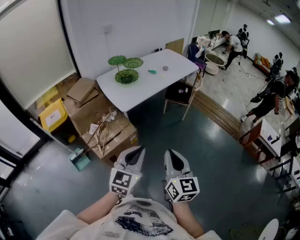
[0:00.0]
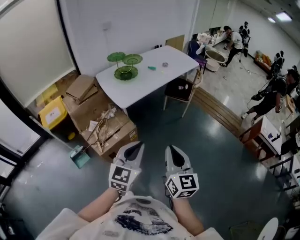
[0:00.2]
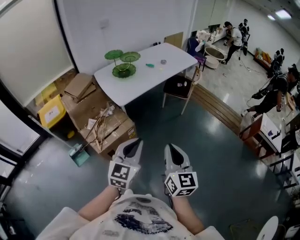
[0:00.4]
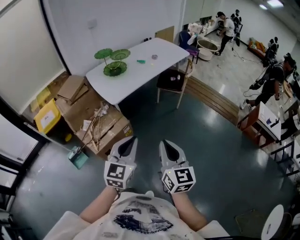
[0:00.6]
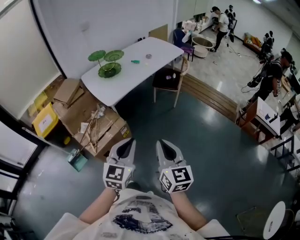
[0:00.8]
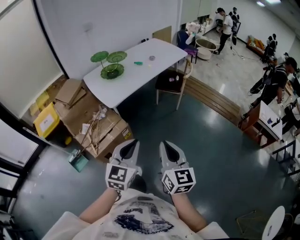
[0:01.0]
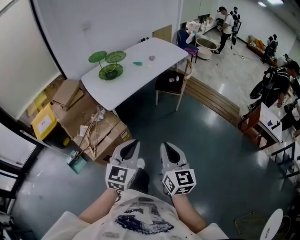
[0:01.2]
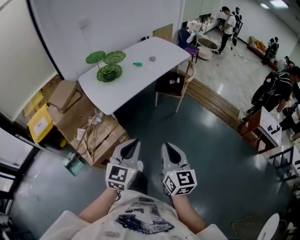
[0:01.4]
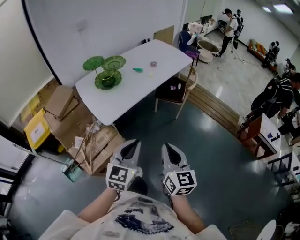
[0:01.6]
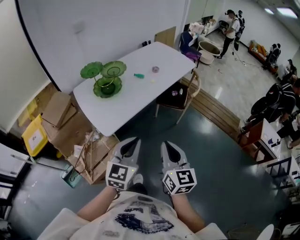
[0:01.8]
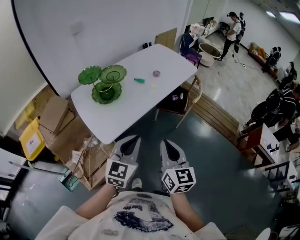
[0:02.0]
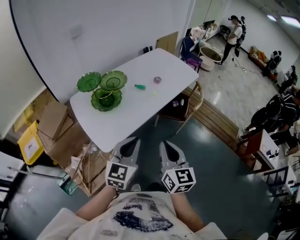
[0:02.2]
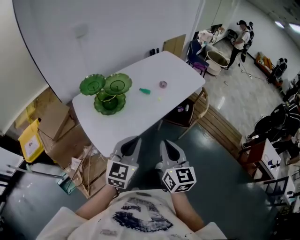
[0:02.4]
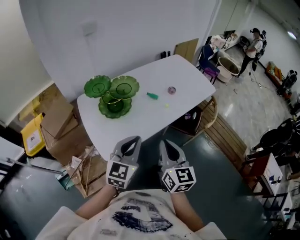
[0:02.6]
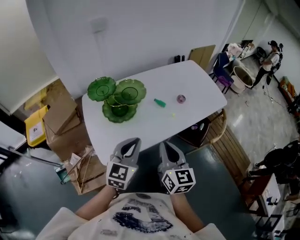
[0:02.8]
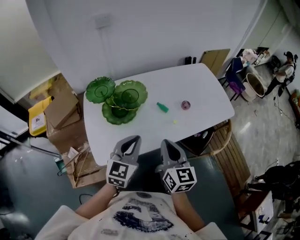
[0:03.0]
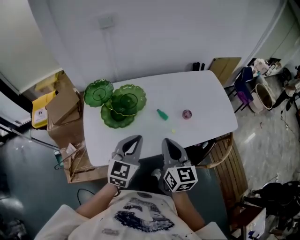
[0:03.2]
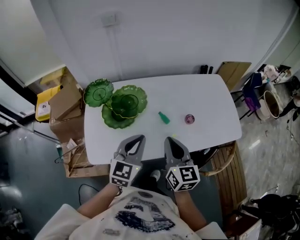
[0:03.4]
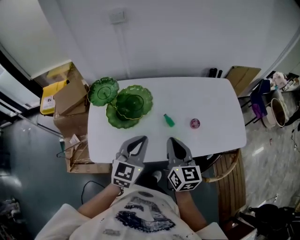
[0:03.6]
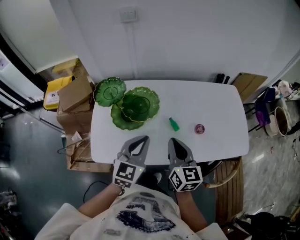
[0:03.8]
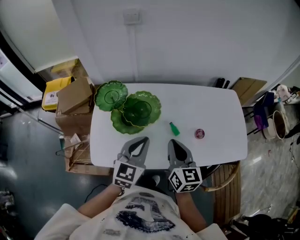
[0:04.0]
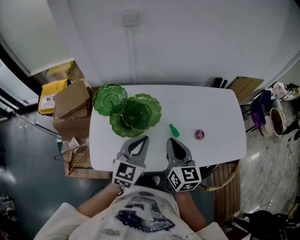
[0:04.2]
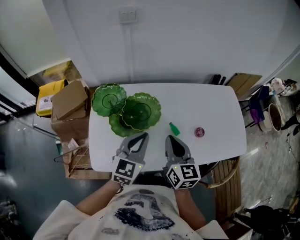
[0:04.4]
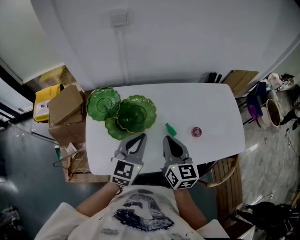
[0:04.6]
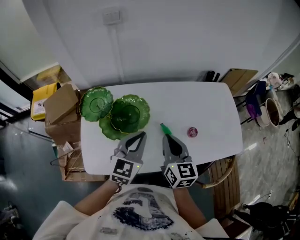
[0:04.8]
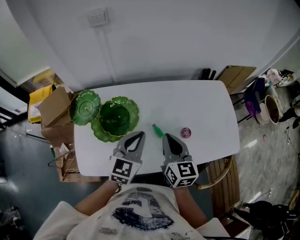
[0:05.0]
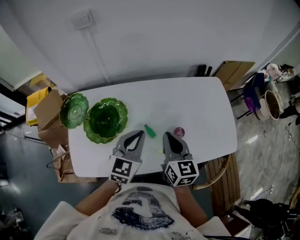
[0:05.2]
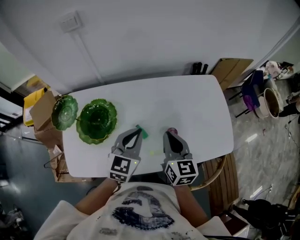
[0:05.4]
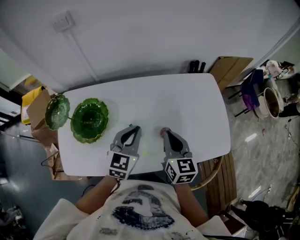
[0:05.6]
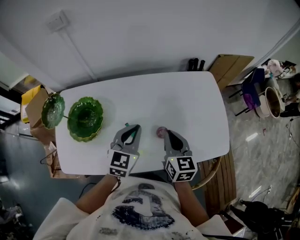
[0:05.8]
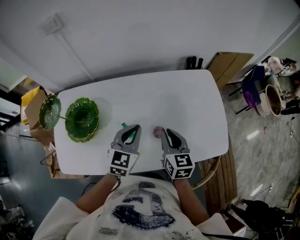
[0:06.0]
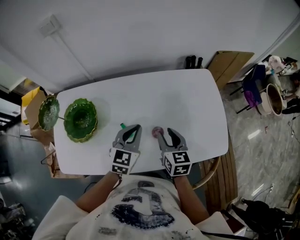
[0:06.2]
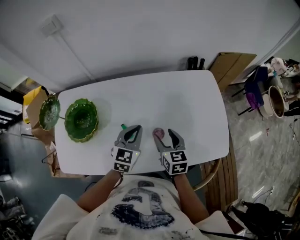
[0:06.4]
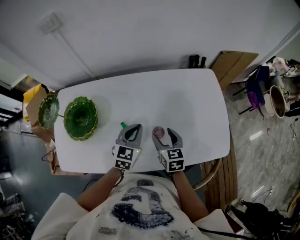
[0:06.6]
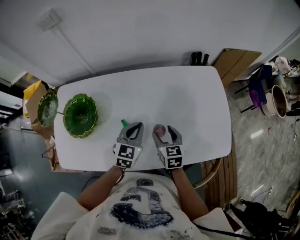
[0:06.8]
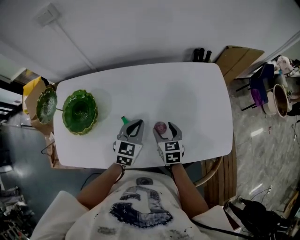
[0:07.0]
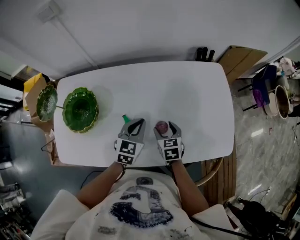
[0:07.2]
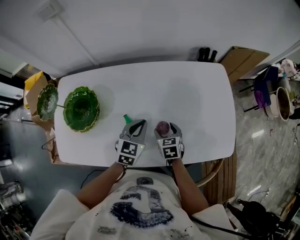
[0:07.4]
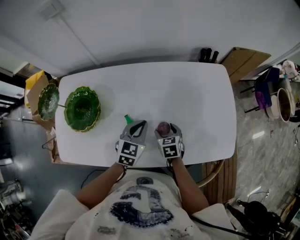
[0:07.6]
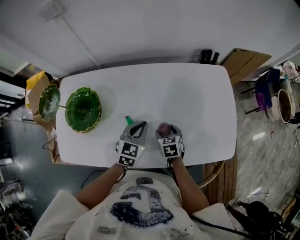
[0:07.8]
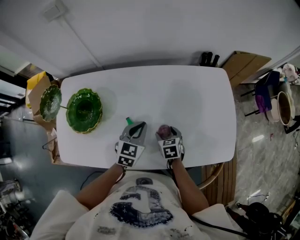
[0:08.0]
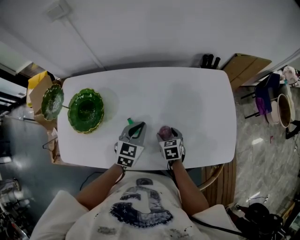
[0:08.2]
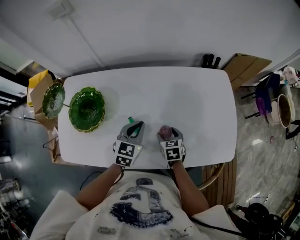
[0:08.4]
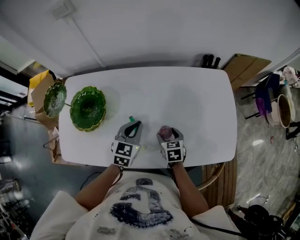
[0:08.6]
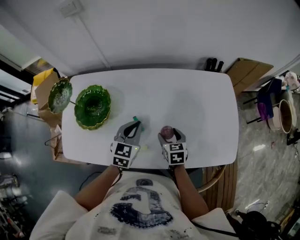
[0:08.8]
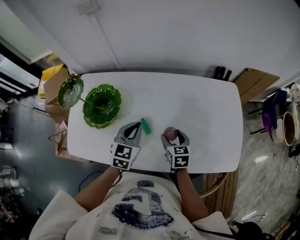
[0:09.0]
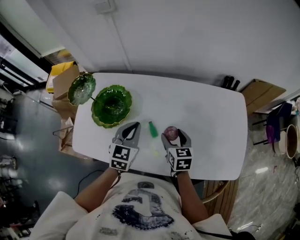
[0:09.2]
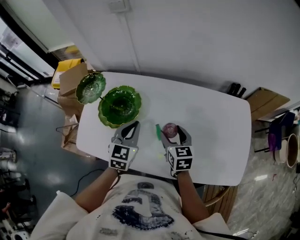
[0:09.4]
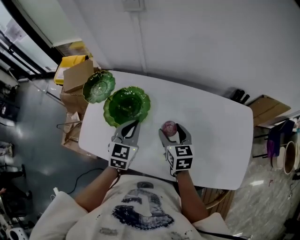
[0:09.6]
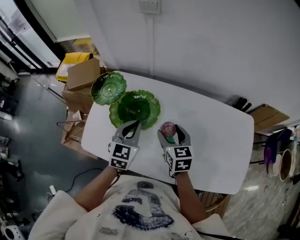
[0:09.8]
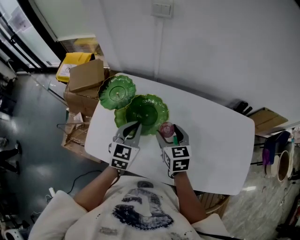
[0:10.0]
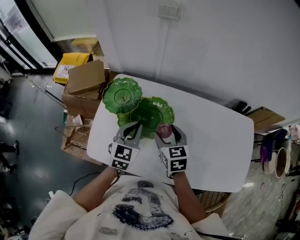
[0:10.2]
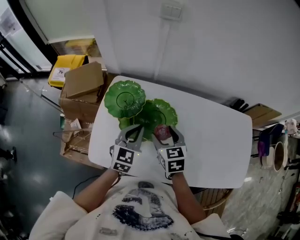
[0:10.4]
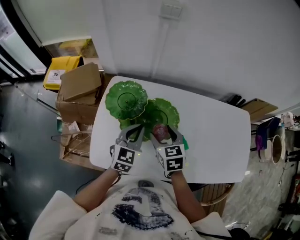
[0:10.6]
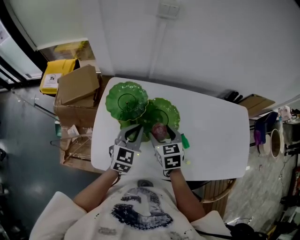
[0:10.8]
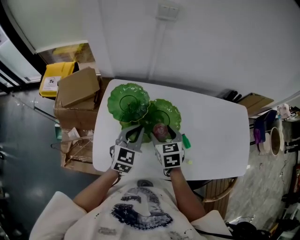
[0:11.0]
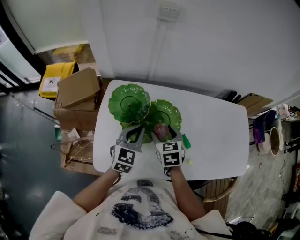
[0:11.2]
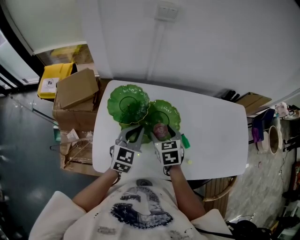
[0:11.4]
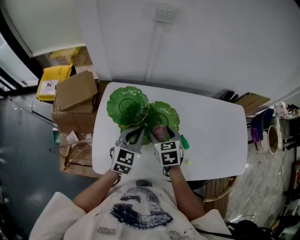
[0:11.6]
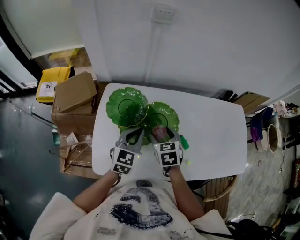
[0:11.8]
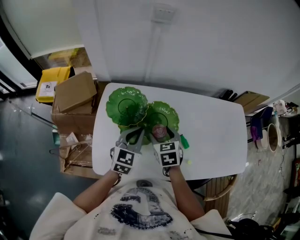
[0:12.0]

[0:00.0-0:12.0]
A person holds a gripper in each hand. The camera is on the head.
0:00.0 to 0:01.6: The grippers both shift forward by approximately 25 cm.
0:01.6 to 0:03.0: The two grippers travel together, approximately 50 cm. The left gripper swivels about 20 degrees. Meanwhile the right gripper changes its angle by some 30 degrees.
0:03.0 to 0:04.4: Both grippers move forward, roughly 15 cm.
0:04.4 to 0:06.0: Both grippers move to the right and forward, about 30 cm.
0:06.0 to 0:07.6: The right gripper shifts approximately 20 cm downward, turns by some 30 degrees, and opens its fingers, while the left gripper is displaced downward by roughly 10 cm.
0:07.6 to 0:09.0: The right gripper goes some 5 cm upward. Meanwhile the left gripper shifts about 10 cm to the left and upward.
0:09.0 to 0:10.4: The right gripper goes approximately 30 cm to the left and upward; the left gripper travels to the left by roughly 25 cm.
0:10.4 to 0:12.0: There are only small adjustments of the grippers.

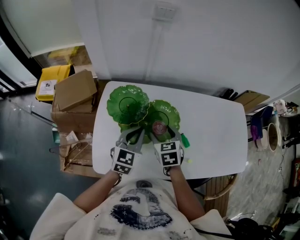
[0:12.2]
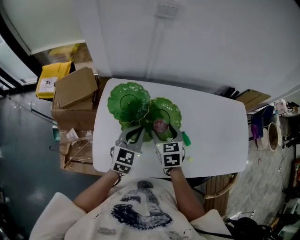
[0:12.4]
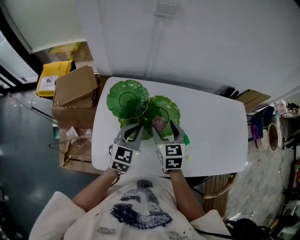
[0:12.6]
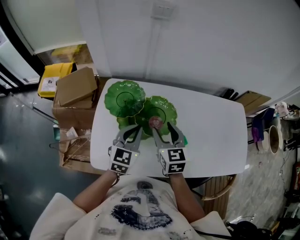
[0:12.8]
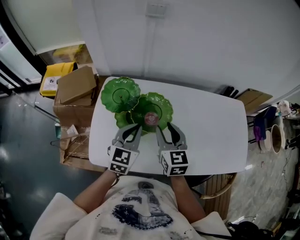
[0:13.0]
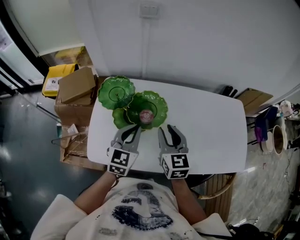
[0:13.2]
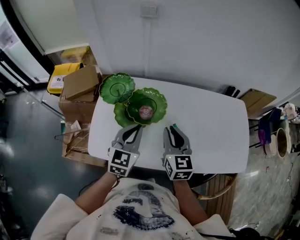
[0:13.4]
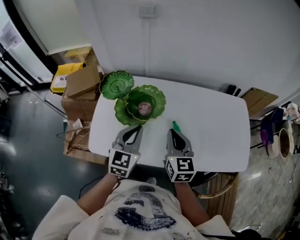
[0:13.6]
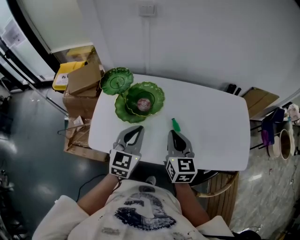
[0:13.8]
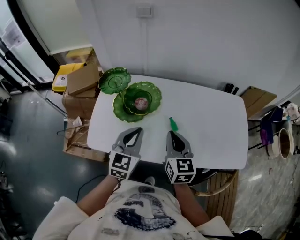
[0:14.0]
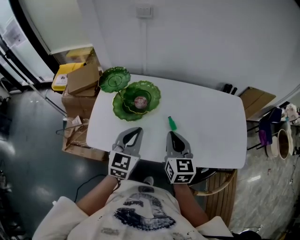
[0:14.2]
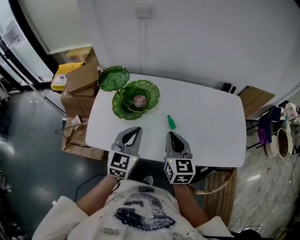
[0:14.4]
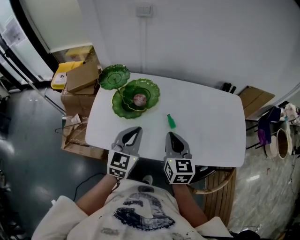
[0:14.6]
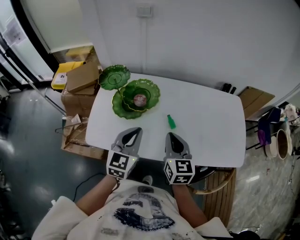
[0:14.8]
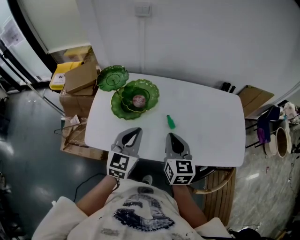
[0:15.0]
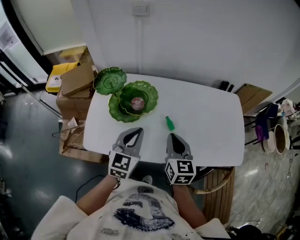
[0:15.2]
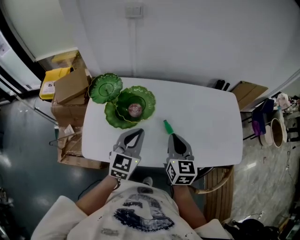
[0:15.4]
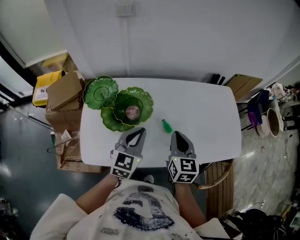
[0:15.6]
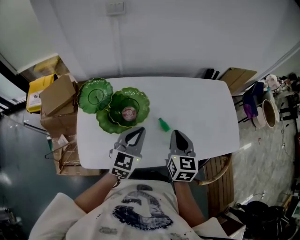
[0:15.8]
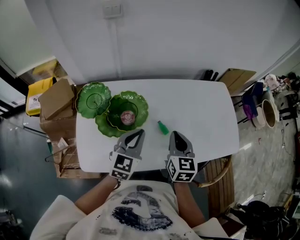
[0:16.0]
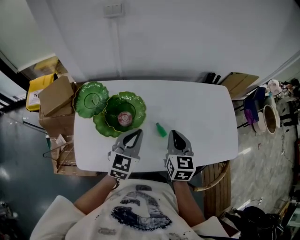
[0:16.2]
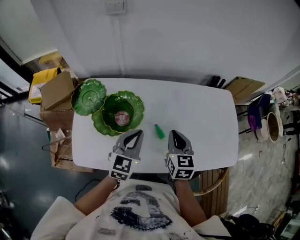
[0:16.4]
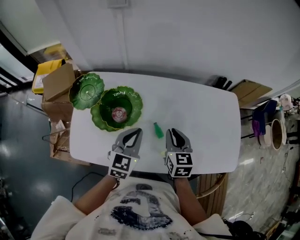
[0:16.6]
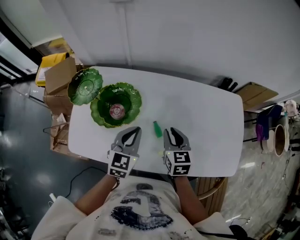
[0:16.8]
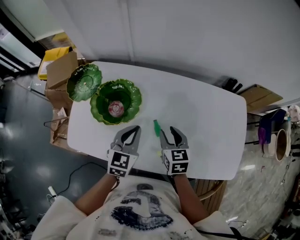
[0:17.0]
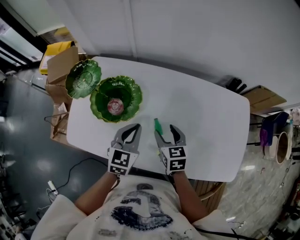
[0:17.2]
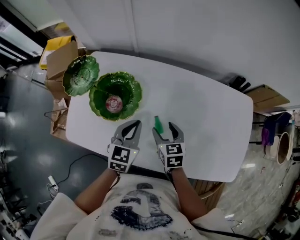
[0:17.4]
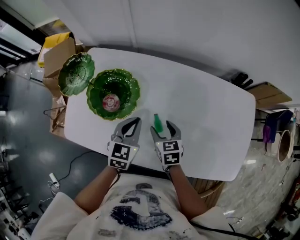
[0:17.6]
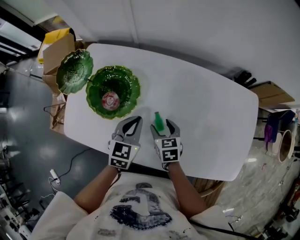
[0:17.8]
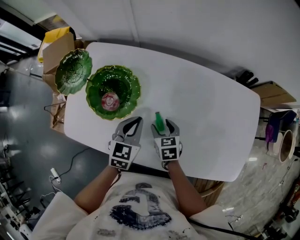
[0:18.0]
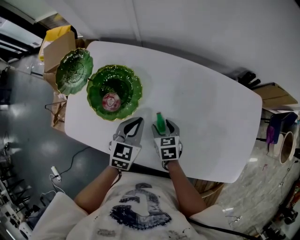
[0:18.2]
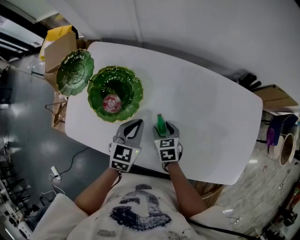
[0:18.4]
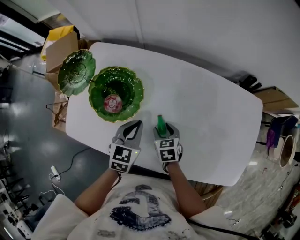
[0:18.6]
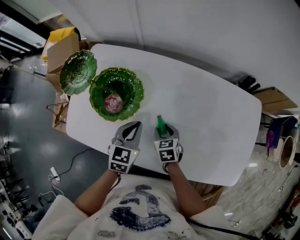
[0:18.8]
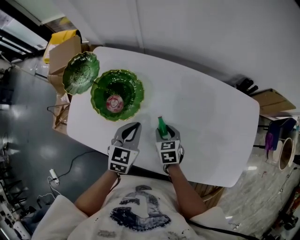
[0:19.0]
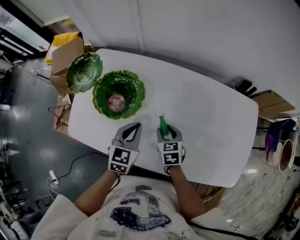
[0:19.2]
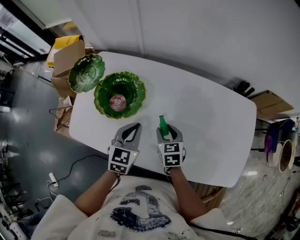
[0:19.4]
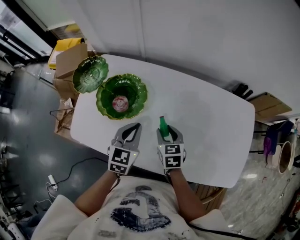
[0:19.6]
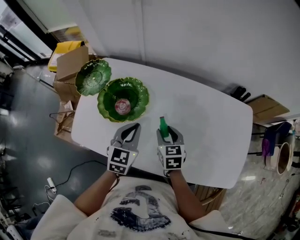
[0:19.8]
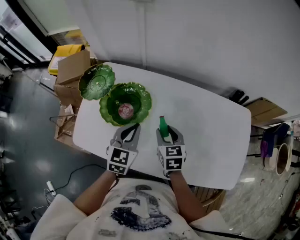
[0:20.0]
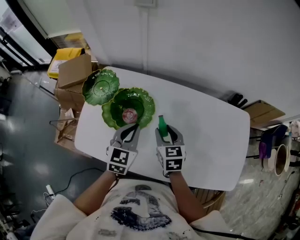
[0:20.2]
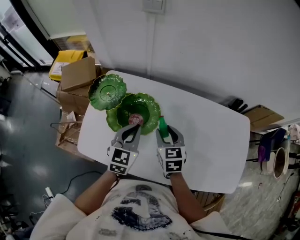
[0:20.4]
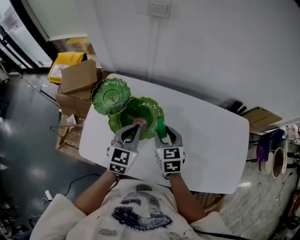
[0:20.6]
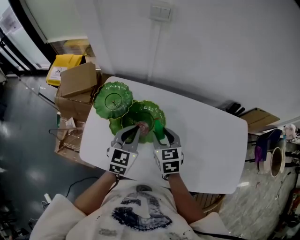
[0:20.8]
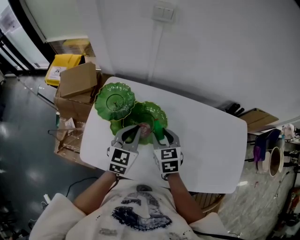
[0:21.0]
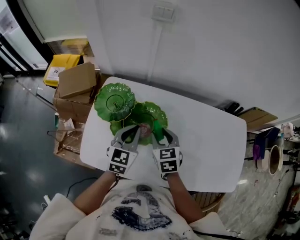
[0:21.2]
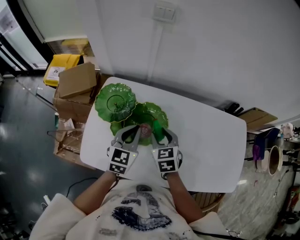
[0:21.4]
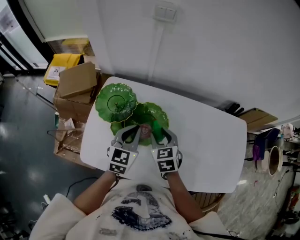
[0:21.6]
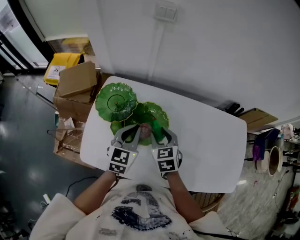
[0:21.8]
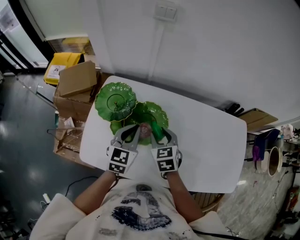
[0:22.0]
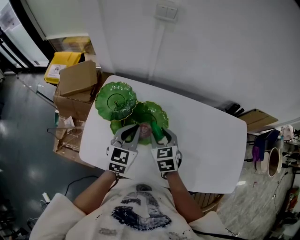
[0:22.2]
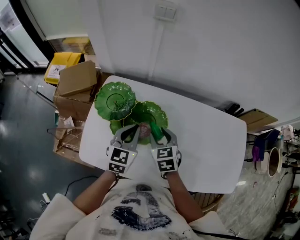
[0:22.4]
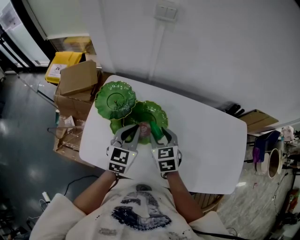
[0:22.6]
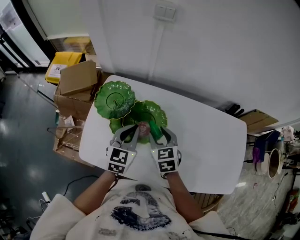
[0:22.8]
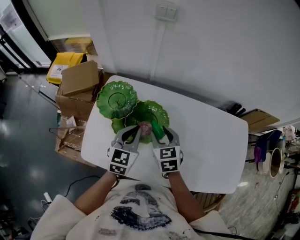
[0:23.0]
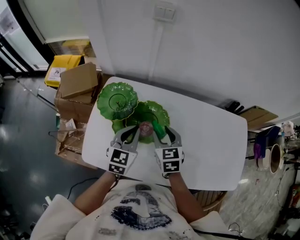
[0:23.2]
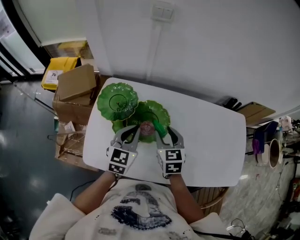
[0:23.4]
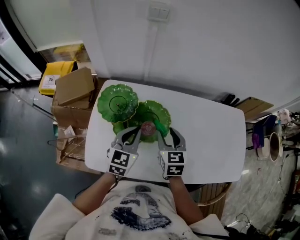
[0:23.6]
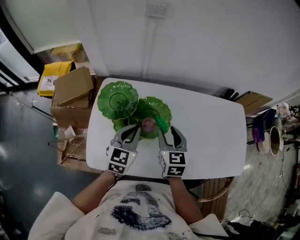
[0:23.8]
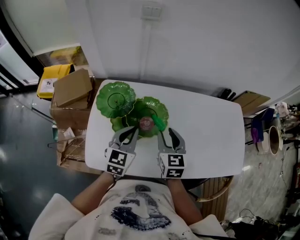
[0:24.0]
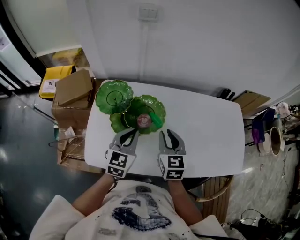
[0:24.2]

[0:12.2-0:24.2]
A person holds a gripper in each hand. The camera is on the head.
0:12.2 to 0:13.8: The left gripper travels backward, to the right and upward by some 20 cm, while the right gripper travels to the right, backward and upward by approximately 20 cm, rotates roughly 30 degrees, and closes its fingers.
0:13.8 to 0:15.2: There are only small adjustments of the grippers.
0:15.2 to 0:16.6: The grippers both shift forward and downward by approximately 15 cm.
0:16.6 to 0:18.2: The left gripper is displaced downward by approximately 10 cm, while the right gripper is displaced downward by about 20 cm, turns by roughly 30 degrees, and opens up.
0:18.2 to 0:19.8: The right gripper travels upward by roughly 10 cm. Meanwhile the left gripper is displaced upward by about 5 cm.
0:19.8 to 0:21.2: The left gripper is displaced to the left and forward by approximately 15 cm. The right gripper heads to the left, upward and forward, covering roughly 15 cm.
0:21.2 to 0:22.6: The grippers make only small movements.
0:22.6 to 0:24.2: The right gripper shifts about 10 cm backward and upward, and rotates approximately 20 degrees. The left gripper travels backward by some 5 cm.
